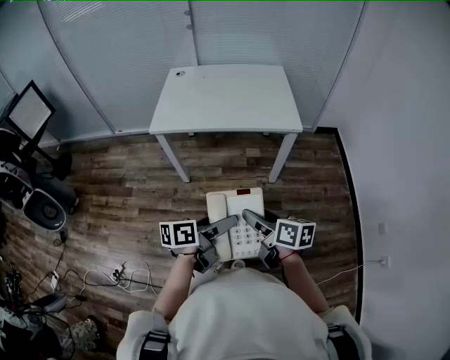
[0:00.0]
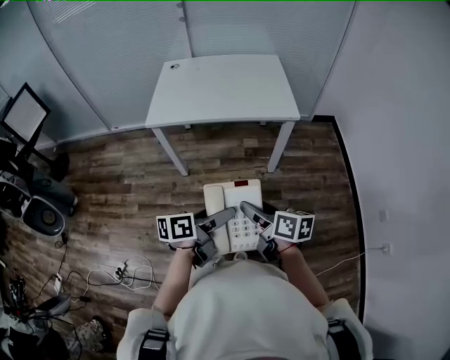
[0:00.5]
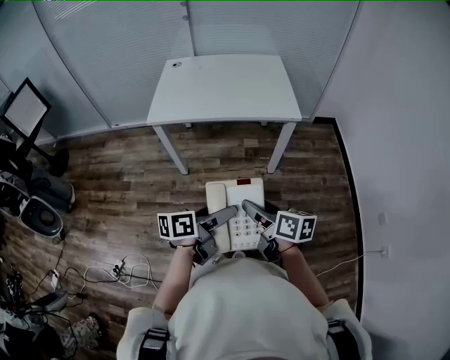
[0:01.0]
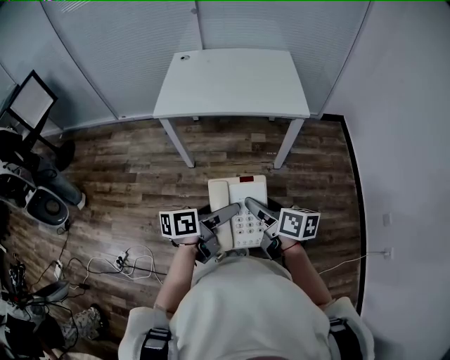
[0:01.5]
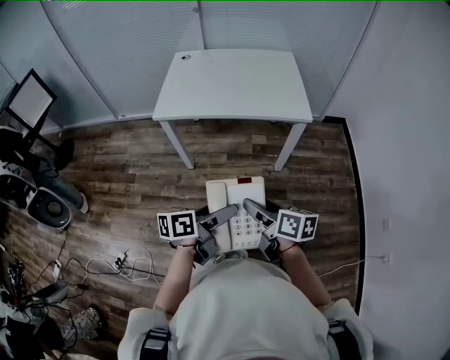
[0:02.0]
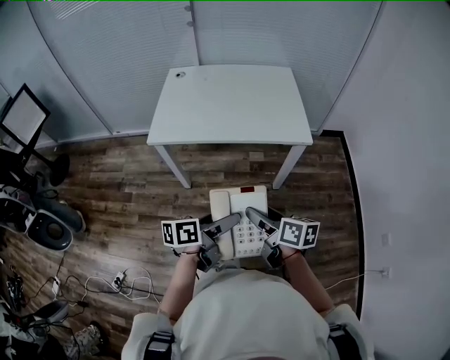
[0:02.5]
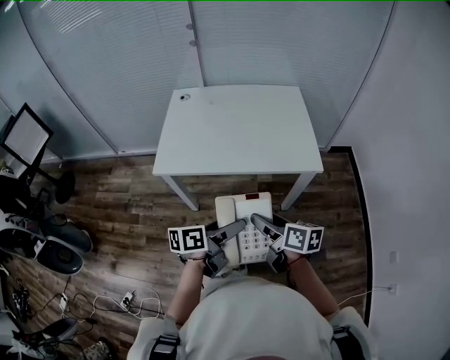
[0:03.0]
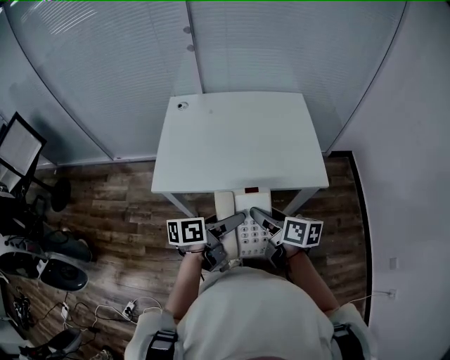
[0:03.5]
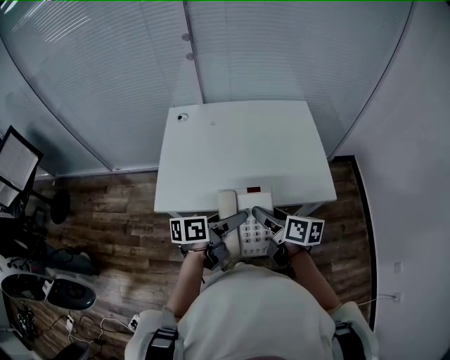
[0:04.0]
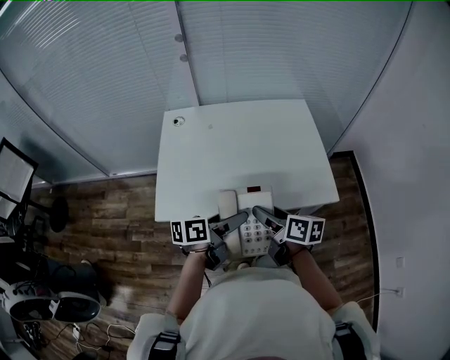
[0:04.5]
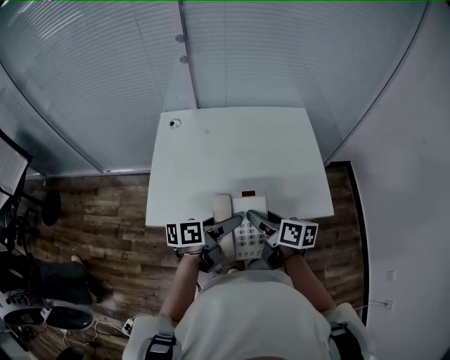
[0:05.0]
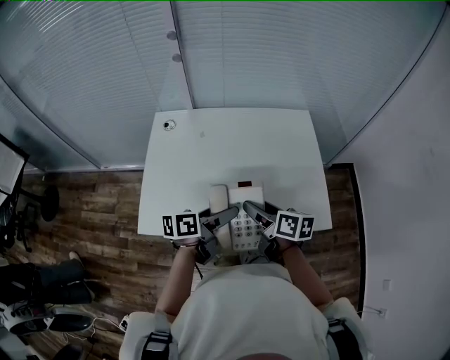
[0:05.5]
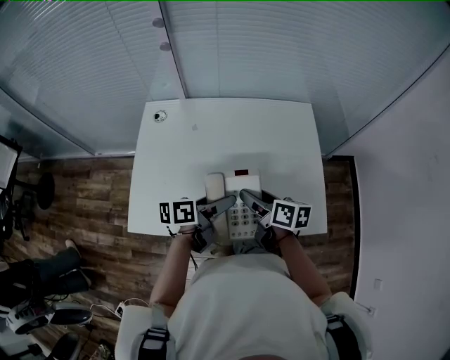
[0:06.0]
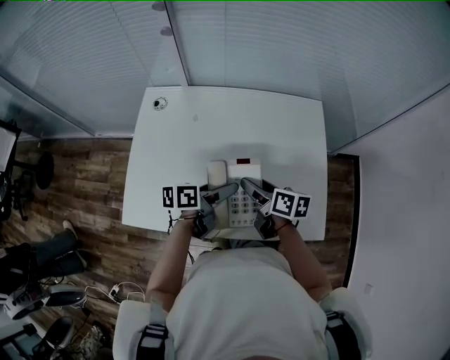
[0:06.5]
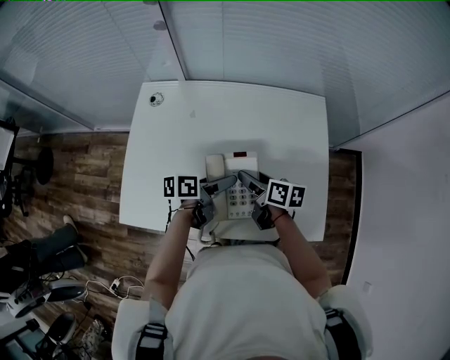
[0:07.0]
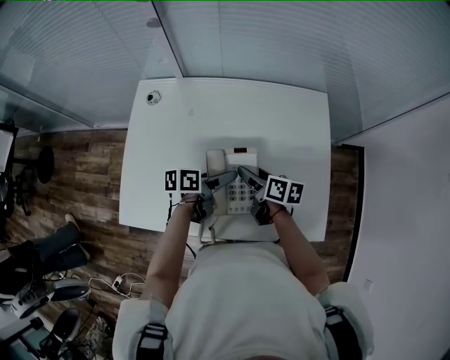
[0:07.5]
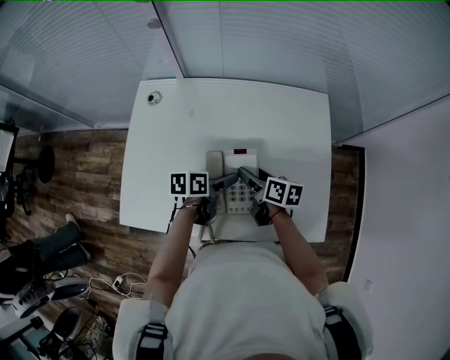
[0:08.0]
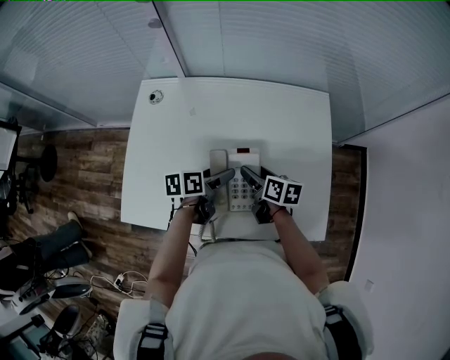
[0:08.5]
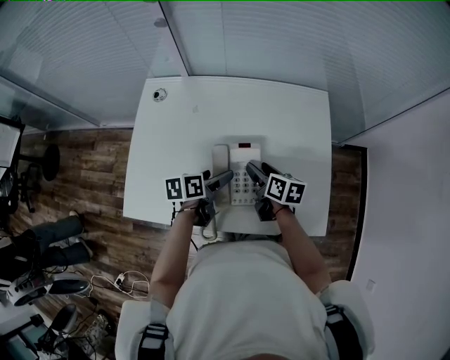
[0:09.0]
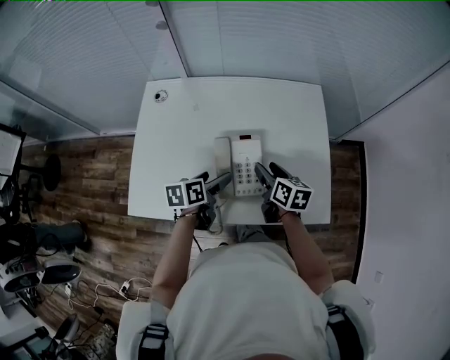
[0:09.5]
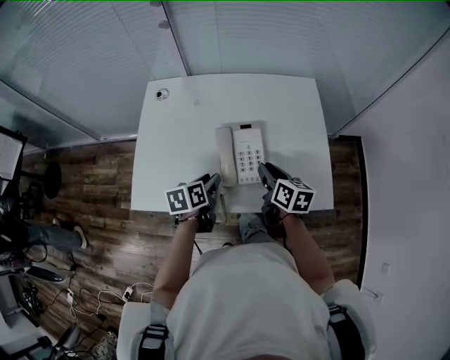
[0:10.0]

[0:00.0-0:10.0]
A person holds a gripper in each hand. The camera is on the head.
0:00.0 to 0:02.0: There are only small adjustments of the grippers.
0:02.0 to 0:04.0: Both grippers travel together forward, approximately 35 cm.
0:04.0 to 0:06.0: The grippers both shift forward by about 20 cm.
0:06.0 to 0:08.0: The two grippers go approximately 15 cm downward and forward.
0:08.0 to 0:10.0: The left gripper shifts some 10 cm backward and to the left, and closes its fingers. The right gripper travels backward and upward by roughly 10 cm, turns by roughly 20 degrees, and closes.

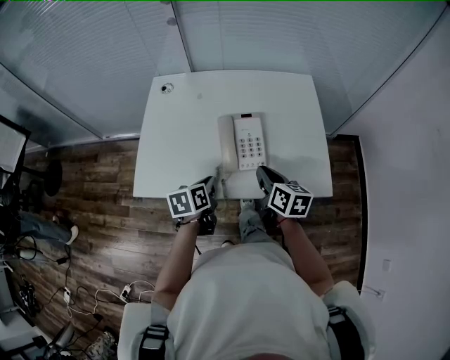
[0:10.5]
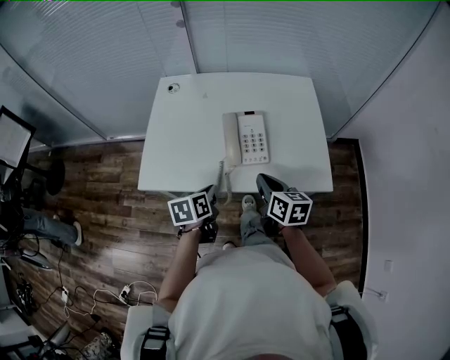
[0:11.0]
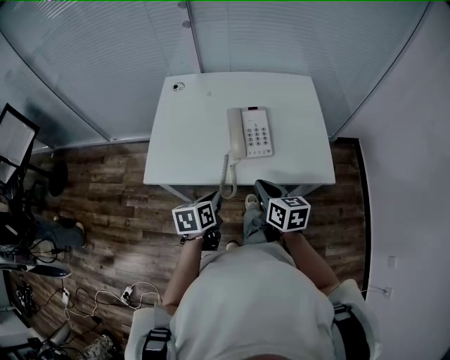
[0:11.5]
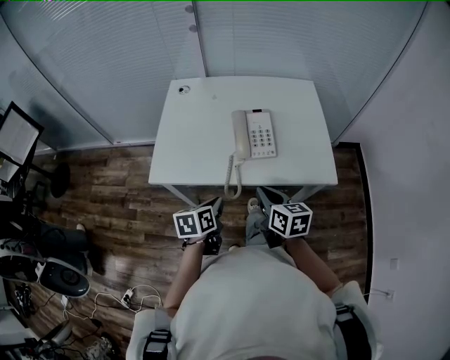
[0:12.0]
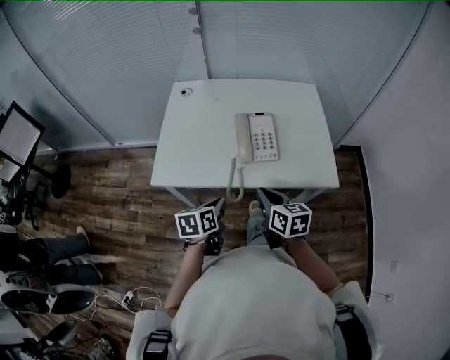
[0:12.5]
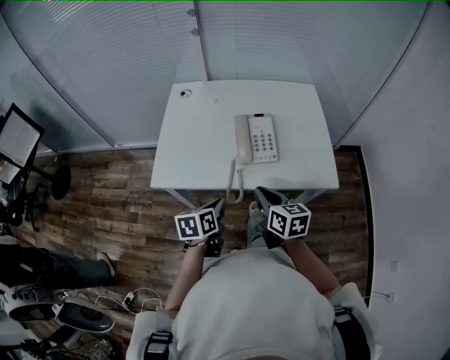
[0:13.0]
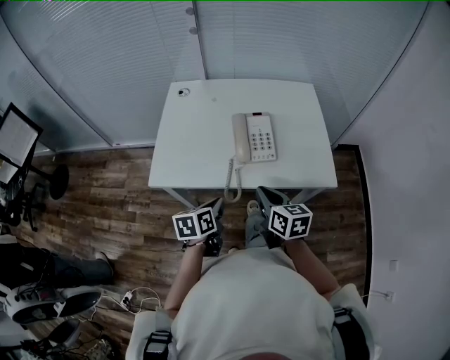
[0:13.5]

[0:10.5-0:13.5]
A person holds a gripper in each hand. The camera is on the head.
0:10.5 to 0:12.0: Both grippers travel together backward, approximately 15 cm.
0:12.0 to 0:13.5: The grippers make only small movements.

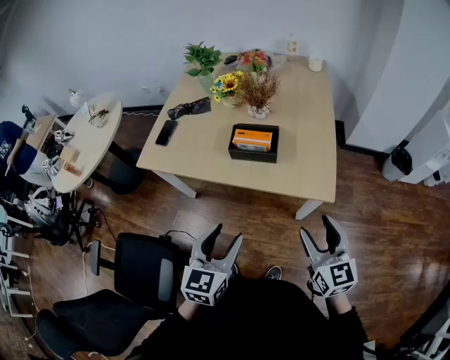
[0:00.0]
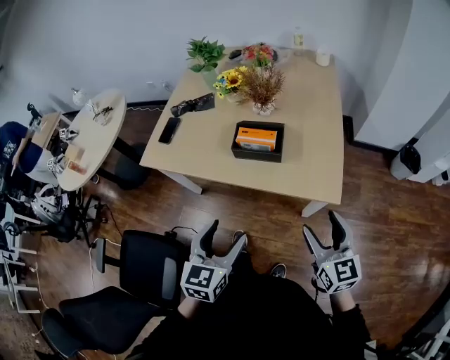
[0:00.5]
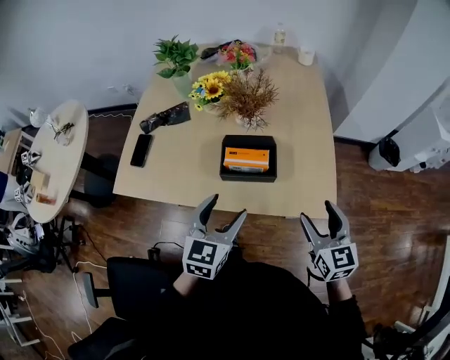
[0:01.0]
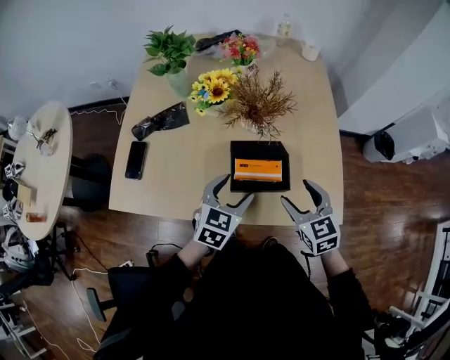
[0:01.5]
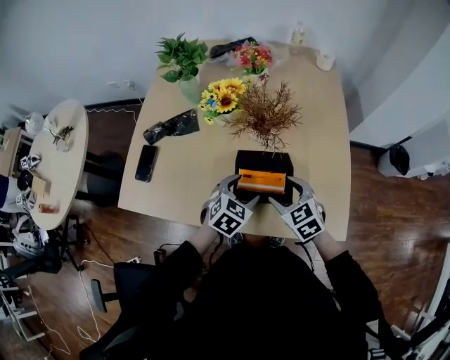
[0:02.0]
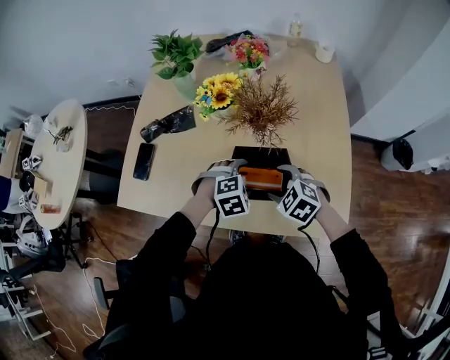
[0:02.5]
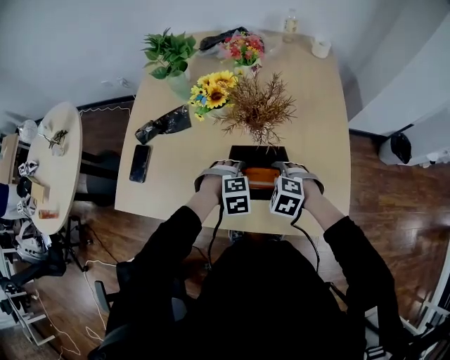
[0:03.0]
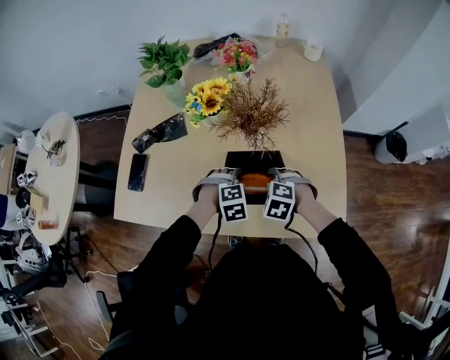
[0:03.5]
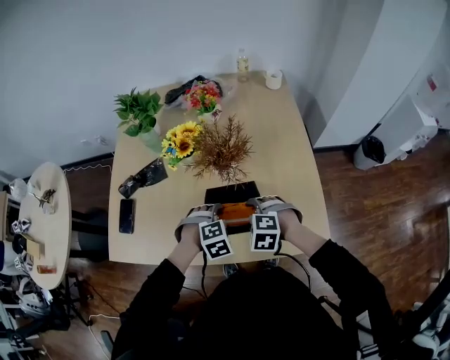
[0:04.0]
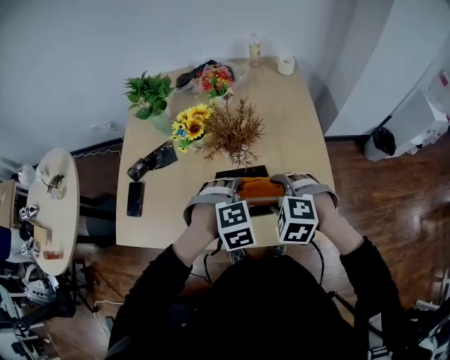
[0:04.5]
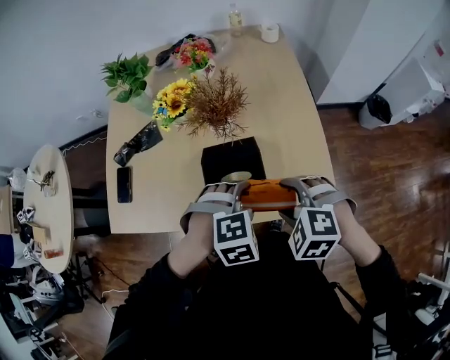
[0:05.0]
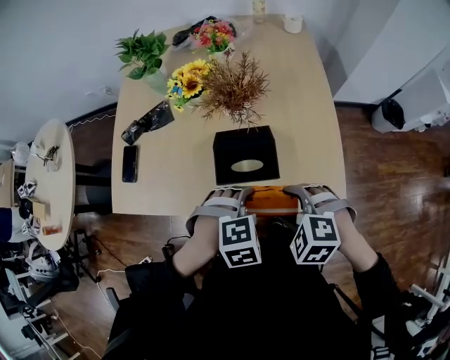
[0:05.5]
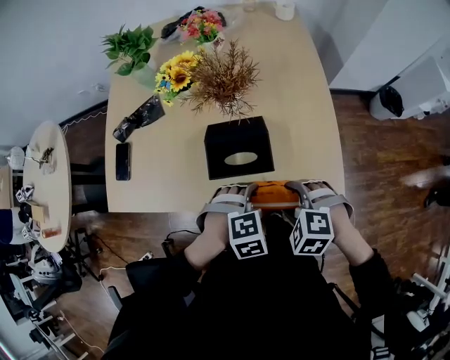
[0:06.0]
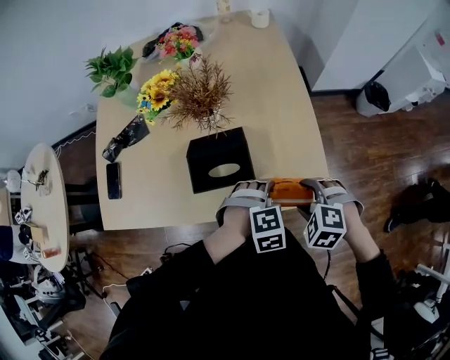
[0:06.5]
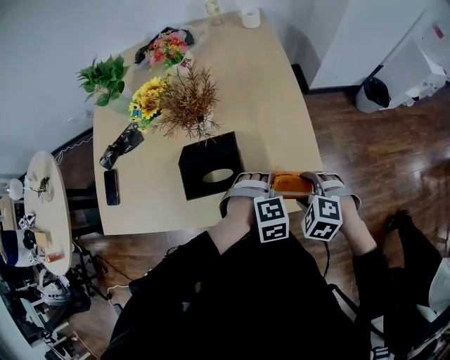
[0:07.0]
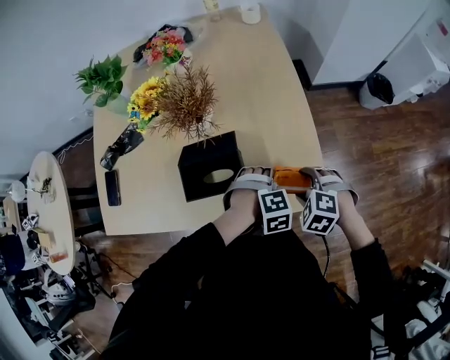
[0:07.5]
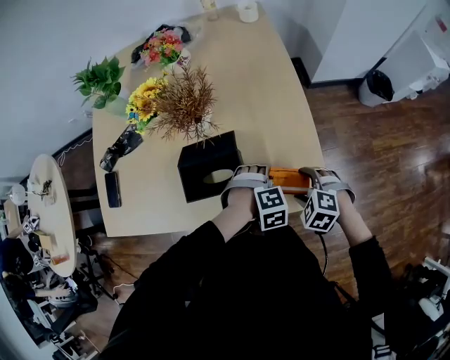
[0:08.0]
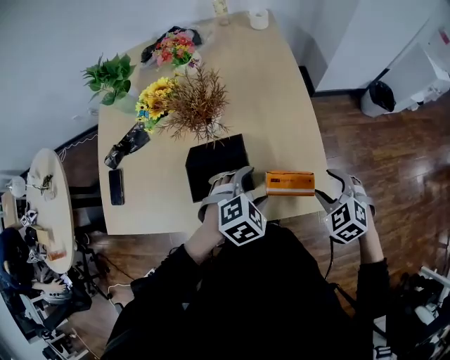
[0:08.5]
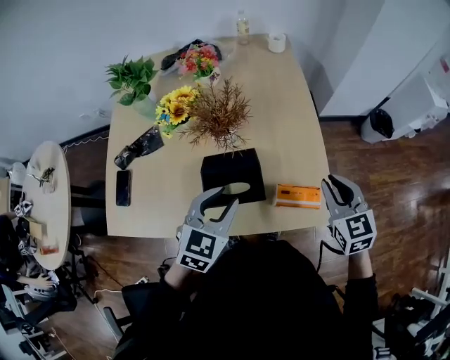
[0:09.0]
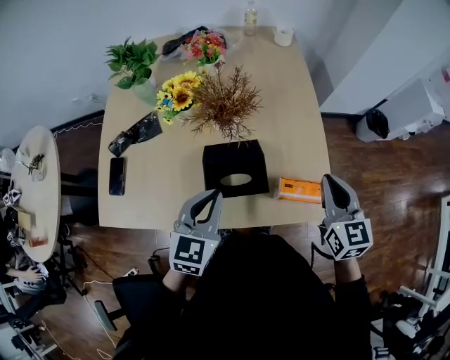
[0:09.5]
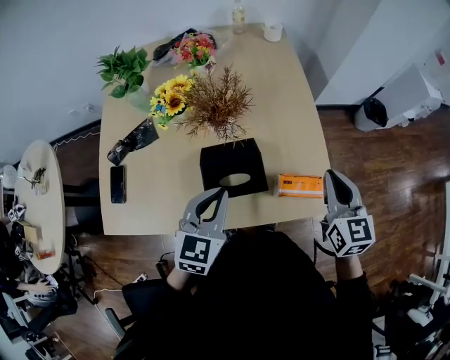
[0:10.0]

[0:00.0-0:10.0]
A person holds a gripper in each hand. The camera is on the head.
0:00.0 to 0:02.0: The left gripper heads forward and downward, covering about 40 cm, and swivels approximately 40 degrees. The right gripper shifts some 40 cm forward, to the left and downward, and tilts its fingers about 30 degrees downward.
0:02.0 to 0:04.0: The left gripper rotates around the line of its fingers by roughly 40 degrees, clockwise from behind. The right gripper changes its angle by roughly 40 degrees.
0:04.0 to 0:06.0: The two grippers go some 15 cm backward and to the right.
0:06.0 to 0:08.0: The left gripper moves some 15 cm. The right gripper moves about 15 cm.
0:08.0 to 0:10.0: The two grippers go some 20 cm upward. The left gripper tilts its fingers about 50 degrees upward, and closes. Meanwhile the right gripper tips its fingers upward by about 50 degrees, and closes.

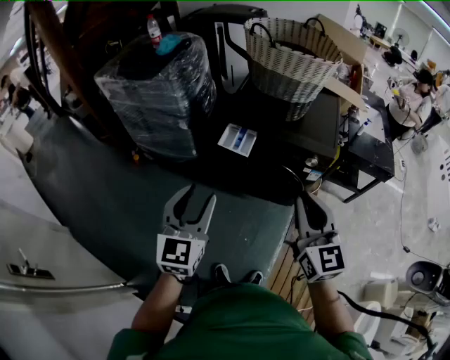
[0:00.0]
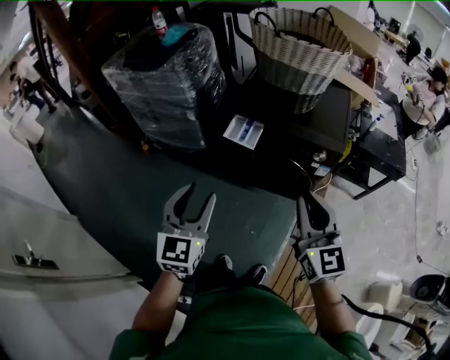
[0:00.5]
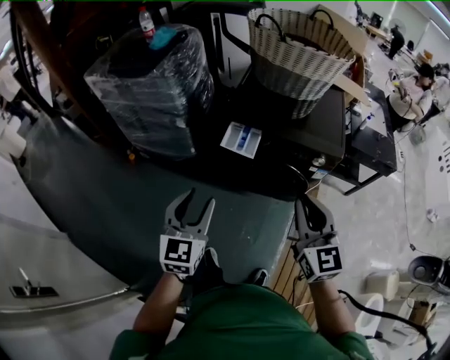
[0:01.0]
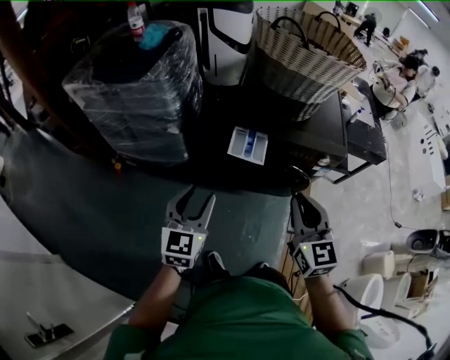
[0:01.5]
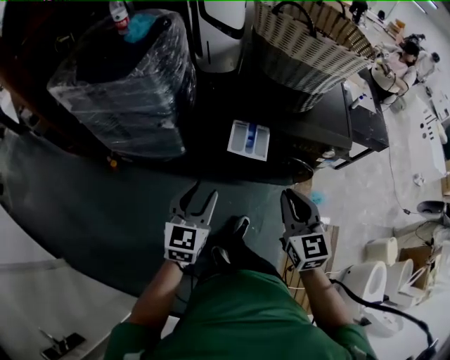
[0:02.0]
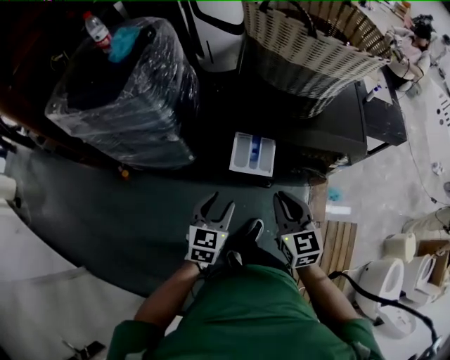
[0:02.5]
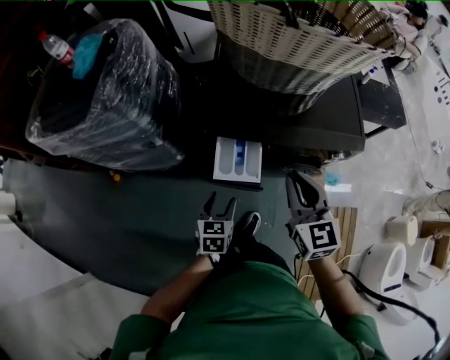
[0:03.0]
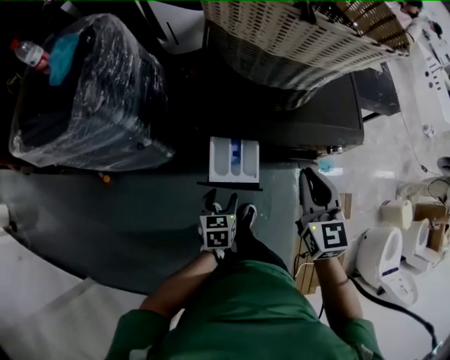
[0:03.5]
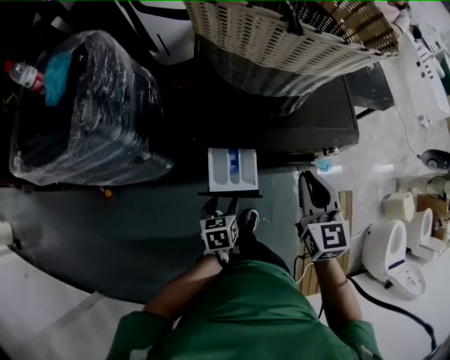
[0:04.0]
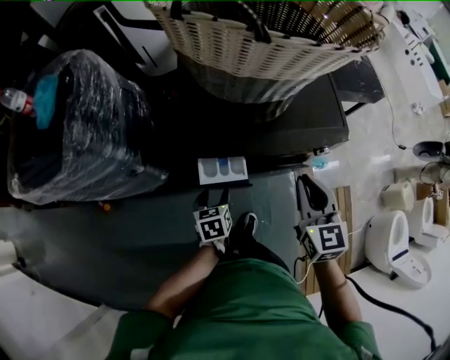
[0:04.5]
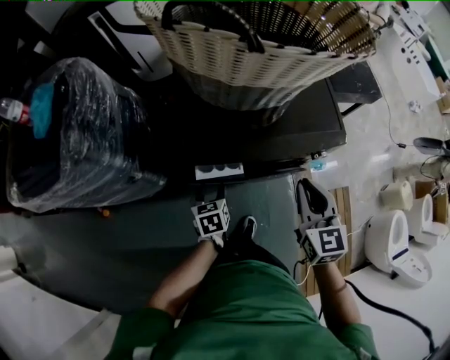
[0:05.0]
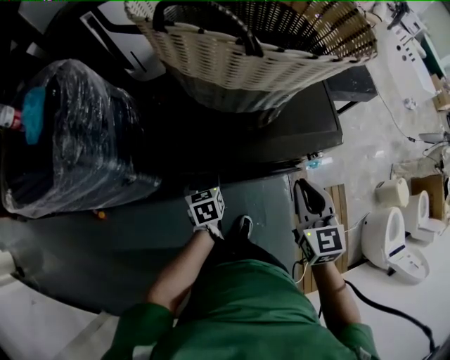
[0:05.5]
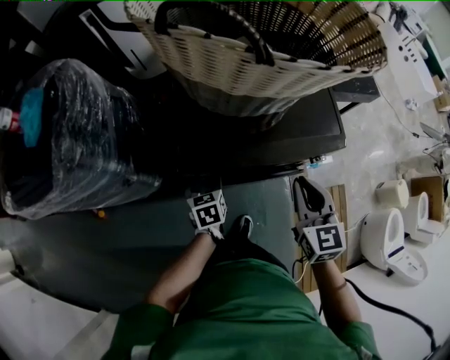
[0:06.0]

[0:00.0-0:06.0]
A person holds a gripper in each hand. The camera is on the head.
0:00.0 to 0:02.0: The right gripper goes approximately 25 cm to the left, forward and downward; the left gripper is displaced forward, downward and to the left by roughly 25 cm, and rotates approximately 20 degrees.
0:02.0 to 0:04.0: The left gripper is displaced downward, forward and to the right by some 30 cm, and angles its fingers downward, by roughly 30 degrees. The right gripper goes about 20 cm forward and to the right.
0:04.0 to 0:06.0: The right gripper changes place by roughly 5 cm. Meanwhile the left gripper shifts some 15 cm forward.
